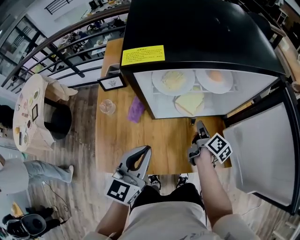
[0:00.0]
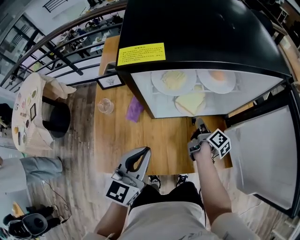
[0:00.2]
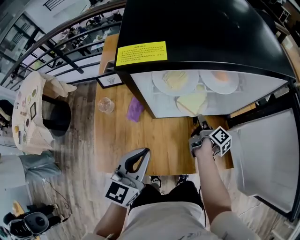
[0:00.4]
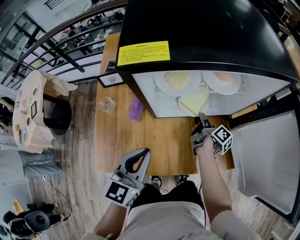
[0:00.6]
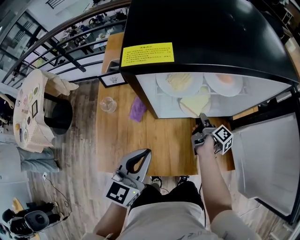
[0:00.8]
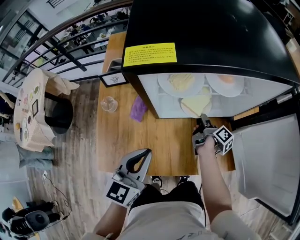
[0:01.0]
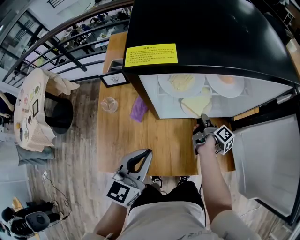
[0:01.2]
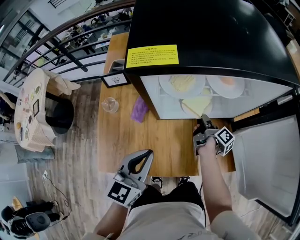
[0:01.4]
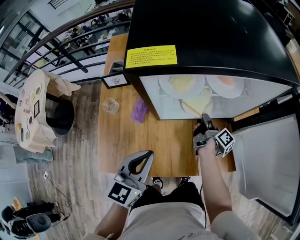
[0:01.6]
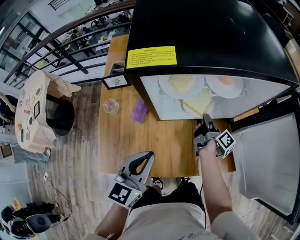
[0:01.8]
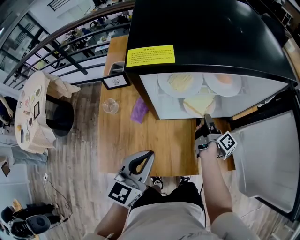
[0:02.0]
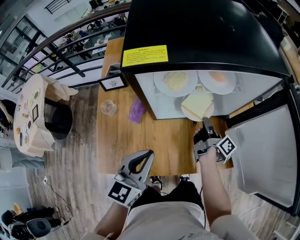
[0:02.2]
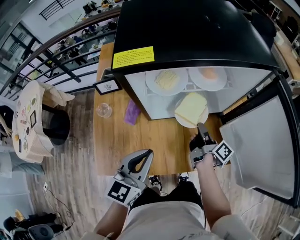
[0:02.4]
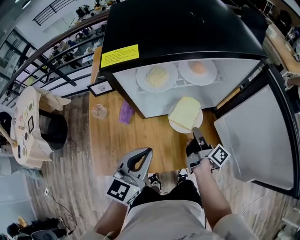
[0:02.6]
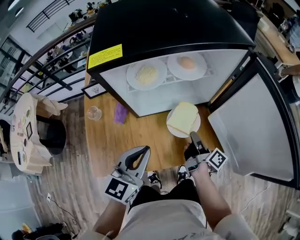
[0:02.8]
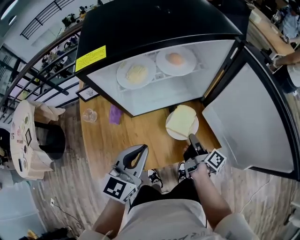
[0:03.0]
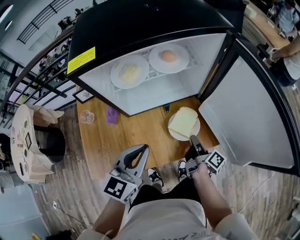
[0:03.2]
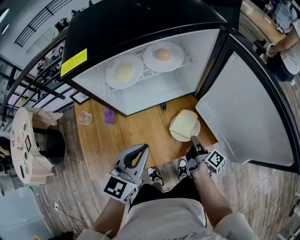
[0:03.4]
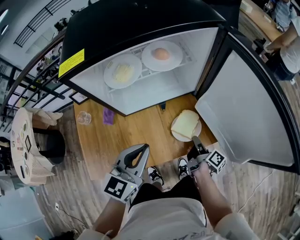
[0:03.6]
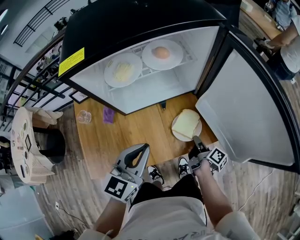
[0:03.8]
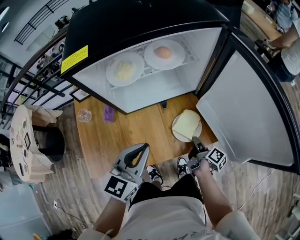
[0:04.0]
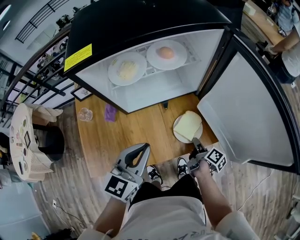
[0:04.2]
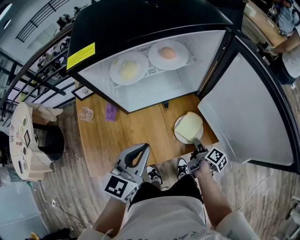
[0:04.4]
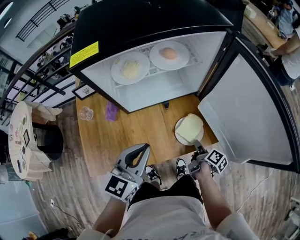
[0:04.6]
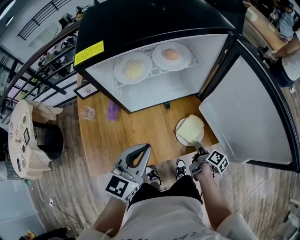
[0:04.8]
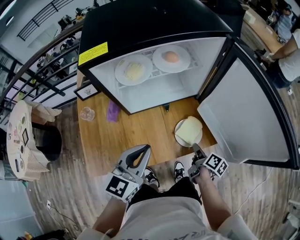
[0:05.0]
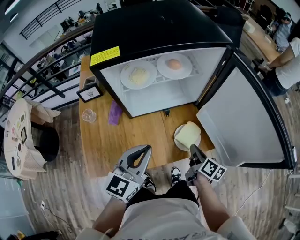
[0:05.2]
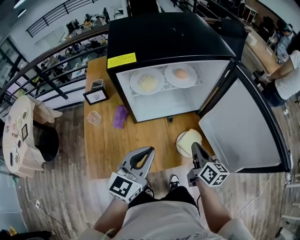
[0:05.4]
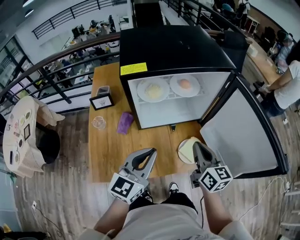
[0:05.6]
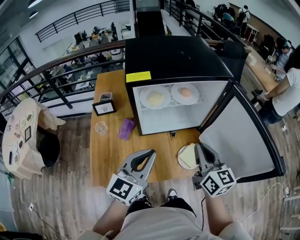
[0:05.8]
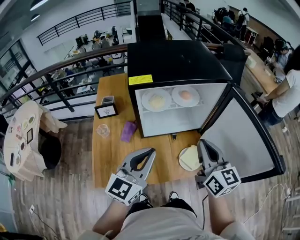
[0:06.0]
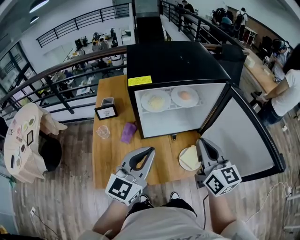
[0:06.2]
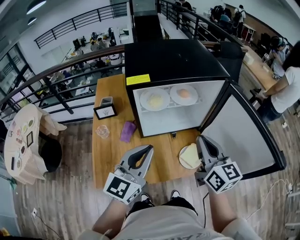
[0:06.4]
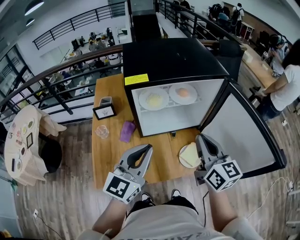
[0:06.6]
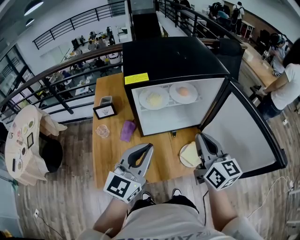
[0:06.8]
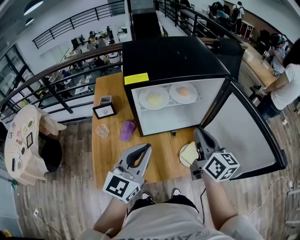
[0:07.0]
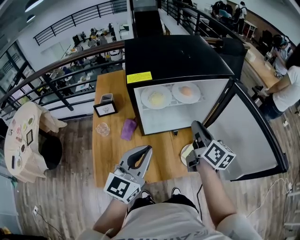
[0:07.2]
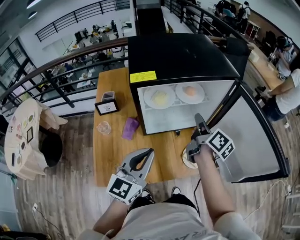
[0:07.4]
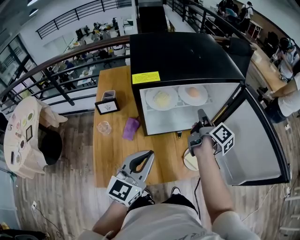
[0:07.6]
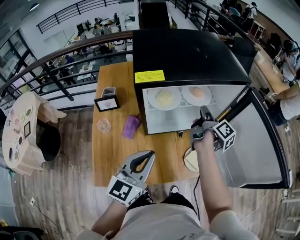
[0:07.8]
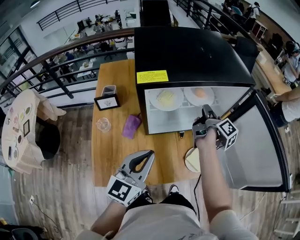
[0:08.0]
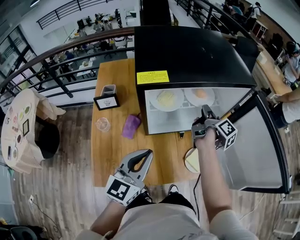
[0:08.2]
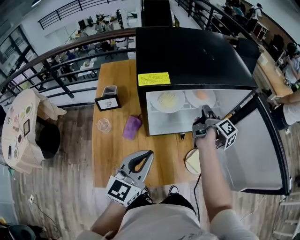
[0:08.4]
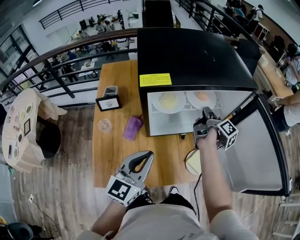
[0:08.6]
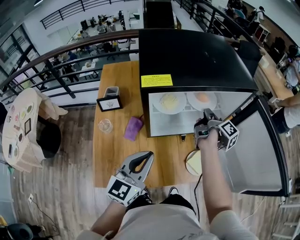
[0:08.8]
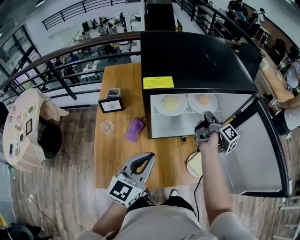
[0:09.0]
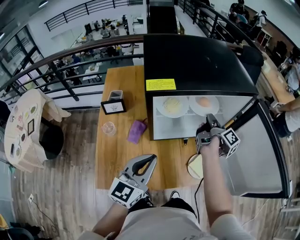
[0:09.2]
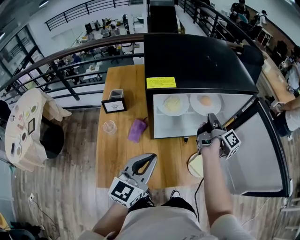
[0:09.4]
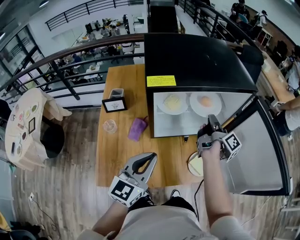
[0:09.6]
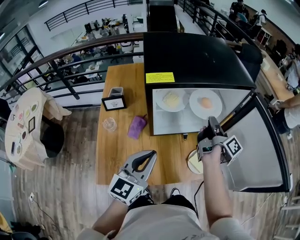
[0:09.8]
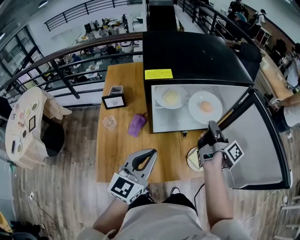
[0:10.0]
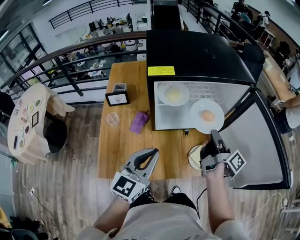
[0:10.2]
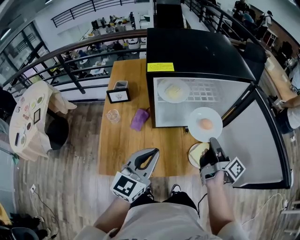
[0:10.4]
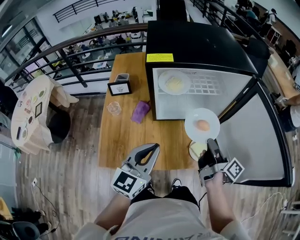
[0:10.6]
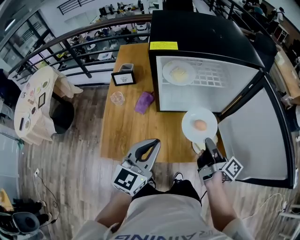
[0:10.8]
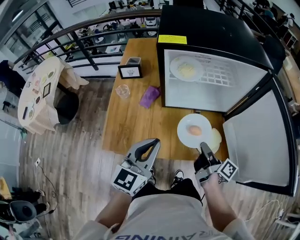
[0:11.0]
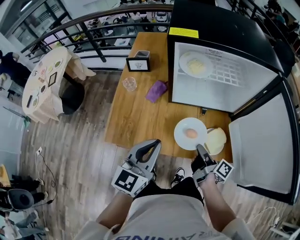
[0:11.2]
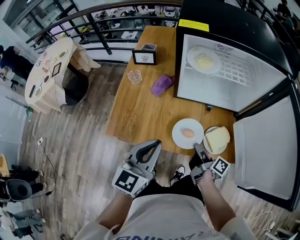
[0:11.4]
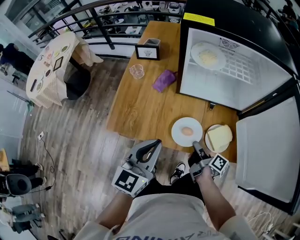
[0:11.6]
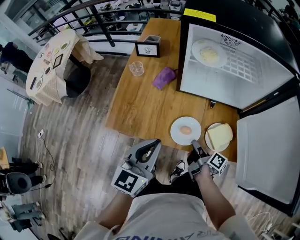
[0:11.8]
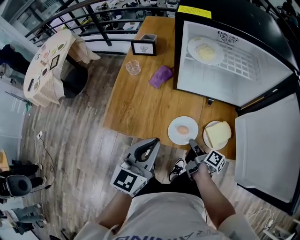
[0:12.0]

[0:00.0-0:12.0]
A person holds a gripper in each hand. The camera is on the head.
0:00.0 to 0:01.6: The right gripper moves forward, some 5 cm, and swivels some 20 degrees.
0:01.6 to 0:03.0: The left gripper moves to the right, roughly 10 cm. The right gripper moves backward and to the right, roughly 20 cm.
0:03.0 to 0:04.4: The right gripper moves downward and to the right, some 10 cm, swivels some 20 degrees, and opens up.
0:04.4 to 0:06.0: The left gripper goes roughly 10 cm upward. The right gripper heads upward, covering about 35 cm, twists roughly 70 degrees counterclockwise, seen from behind, and closes up.
0:06.0 to 0:07.6: The right gripper moves forward and downward, roughly 20 cm, and twists roughly 60 degrees clockwise, seen from behind.
0:07.6 to 0:09.0: The right gripper moves roughly 5 cm.
0:09.0 to 0:10.4: The right gripper is displaced backward by roughly 15 cm; the left gripper changes place by roughly 5 cm.
0:10.4 to 0:12.0: The right gripper shifts about 25 cm downward, and swivels roughly 40 degrees, while the left gripper changes place by some 10 cm.

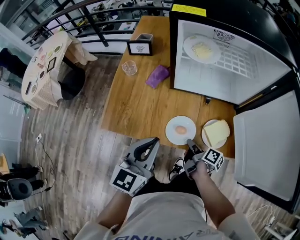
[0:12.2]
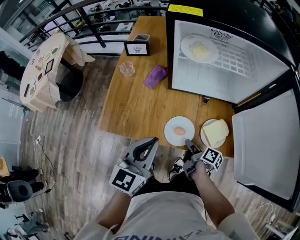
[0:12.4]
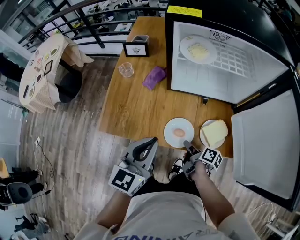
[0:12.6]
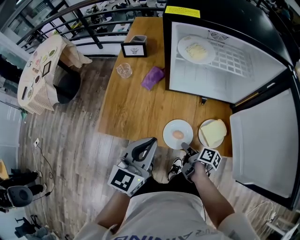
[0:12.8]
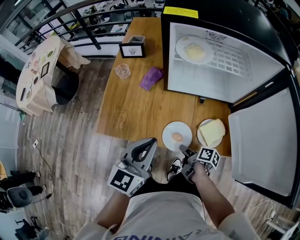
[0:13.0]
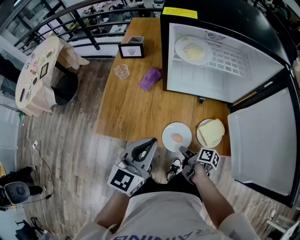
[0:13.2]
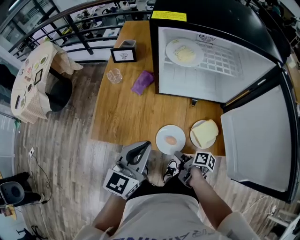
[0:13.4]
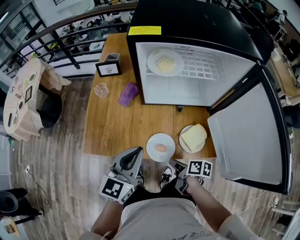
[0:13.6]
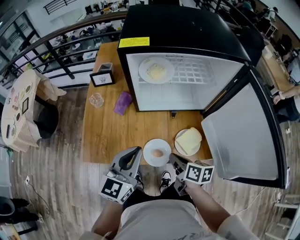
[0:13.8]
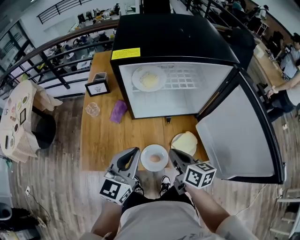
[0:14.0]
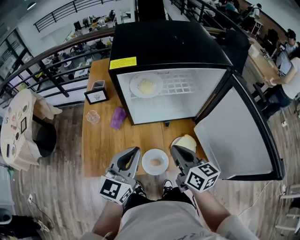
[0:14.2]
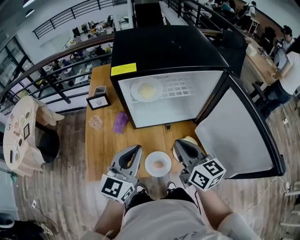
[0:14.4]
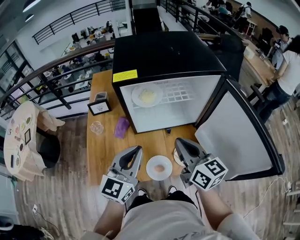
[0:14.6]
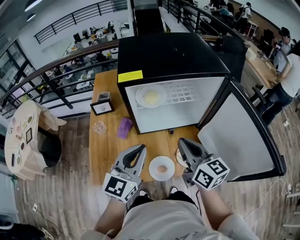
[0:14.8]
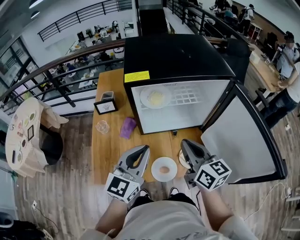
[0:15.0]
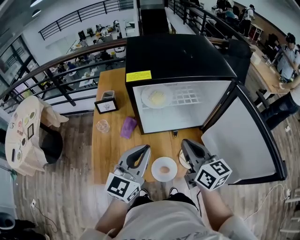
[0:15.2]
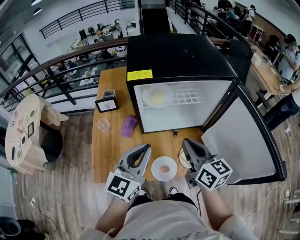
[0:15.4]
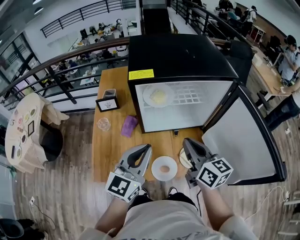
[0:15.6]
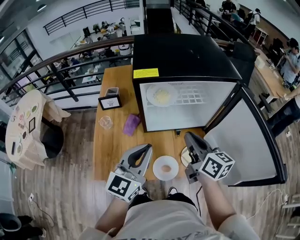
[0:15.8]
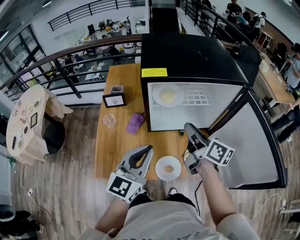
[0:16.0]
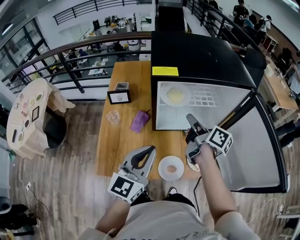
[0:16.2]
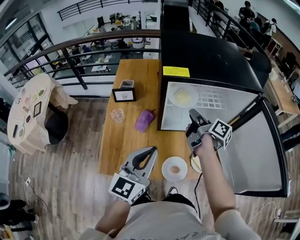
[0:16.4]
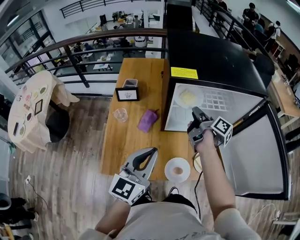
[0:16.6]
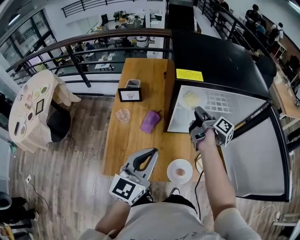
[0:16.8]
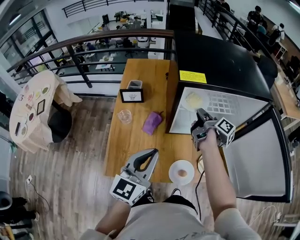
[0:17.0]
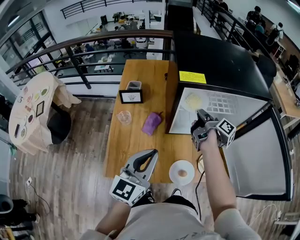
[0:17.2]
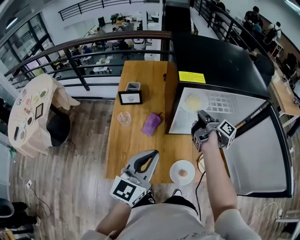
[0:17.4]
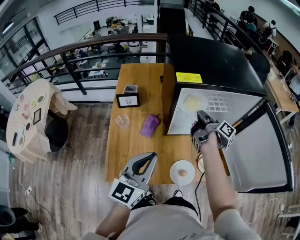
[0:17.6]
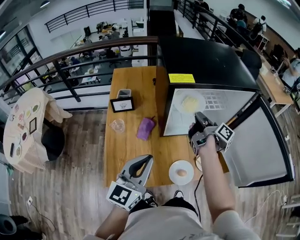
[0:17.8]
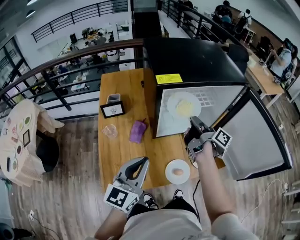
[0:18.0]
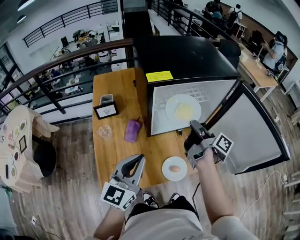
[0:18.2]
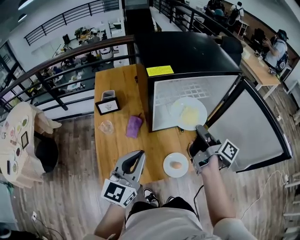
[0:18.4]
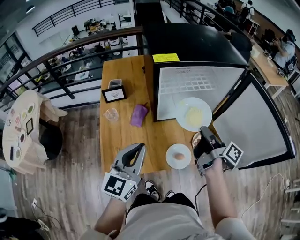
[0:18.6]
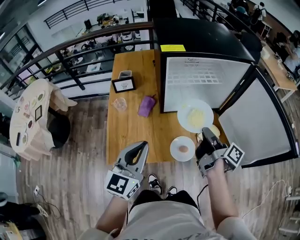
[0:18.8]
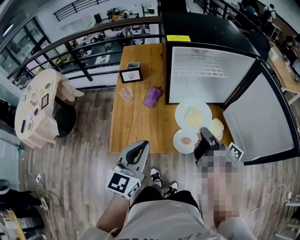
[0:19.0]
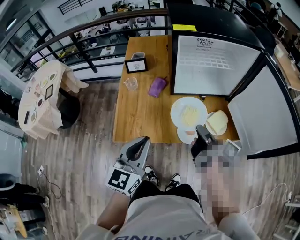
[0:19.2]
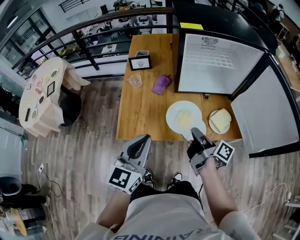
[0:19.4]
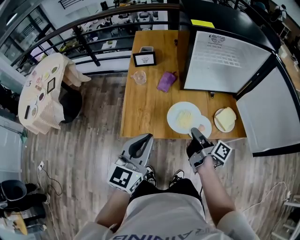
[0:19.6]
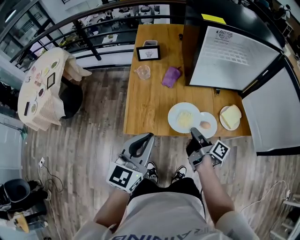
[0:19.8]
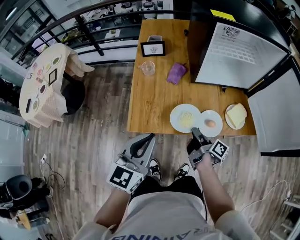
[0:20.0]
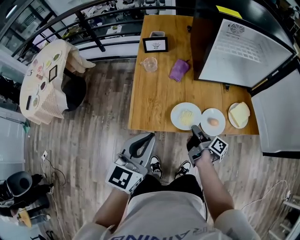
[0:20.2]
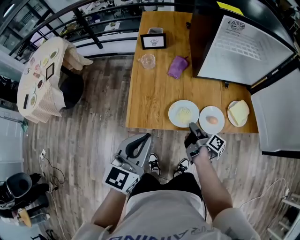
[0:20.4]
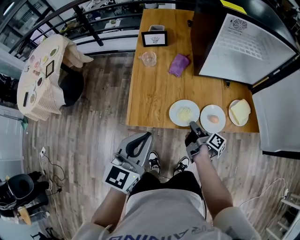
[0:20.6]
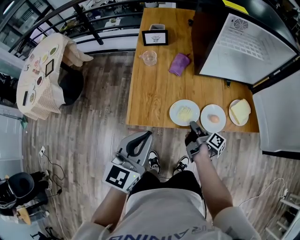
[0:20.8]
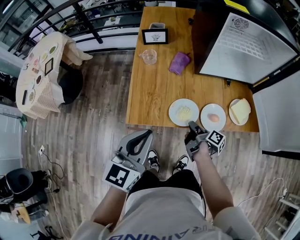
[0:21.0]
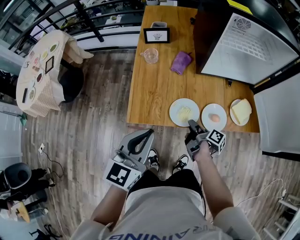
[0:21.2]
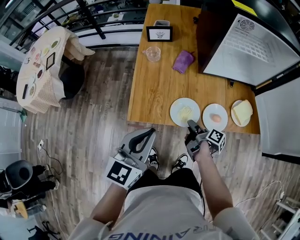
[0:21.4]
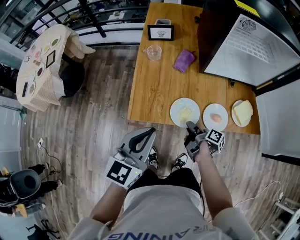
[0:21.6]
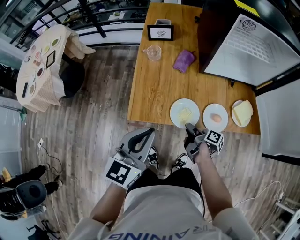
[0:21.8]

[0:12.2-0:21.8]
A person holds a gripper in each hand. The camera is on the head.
0:12.2 to 0:13.8: The left gripper changes place by some 5 cm; the right gripper moves upward, some 10 cm, rotates some 30 degrees, and opens, then closes once more.
0:13.8 to 0:15.4: The right gripper travels upward by approximately 20 cm, and changes its angle by approximately 40 degrees, while the left gripper moves upward, some 10 cm.
0:15.4 to 0:17.0: The right gripper is displaced forward and downward by about 20 cm, and twists about 60 degrees clockwise, seen from behind; the left gripper moves to the left, approximately 10 cm.
0:17.0 to 0:18.6: The right gripper moves backward and to the right, about 20 cm.
0:18.6 to 0:20.2: The left gripper moves backward, to the left and downward, about 15 cm. The right gripper travels downward, to the left and backward by about 30 cm, and turns by roughly 20 degrees.
0:20.2 to 0:21.8: The right gripper moves downward, about 5 cm, and opens up.

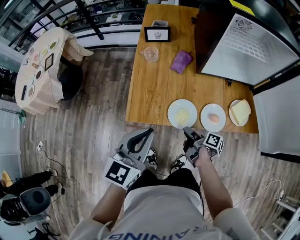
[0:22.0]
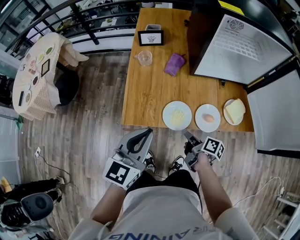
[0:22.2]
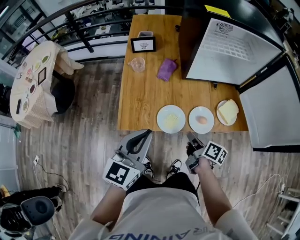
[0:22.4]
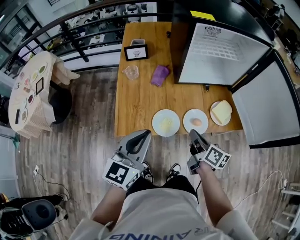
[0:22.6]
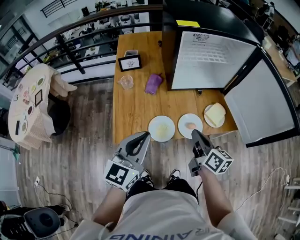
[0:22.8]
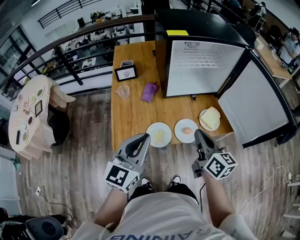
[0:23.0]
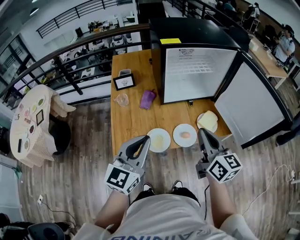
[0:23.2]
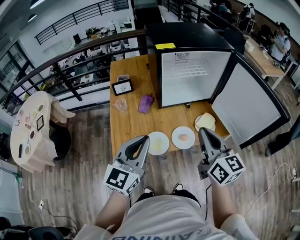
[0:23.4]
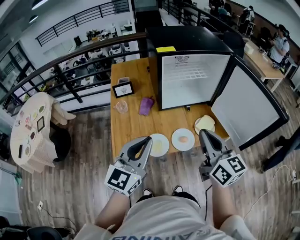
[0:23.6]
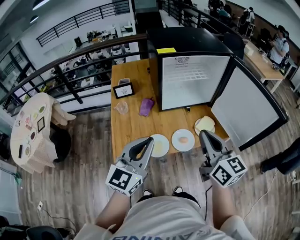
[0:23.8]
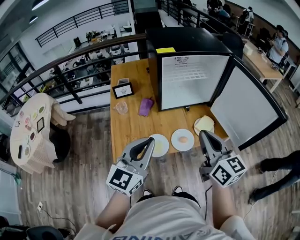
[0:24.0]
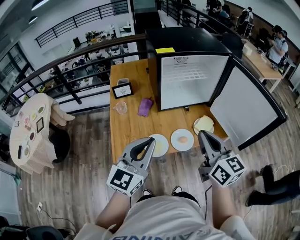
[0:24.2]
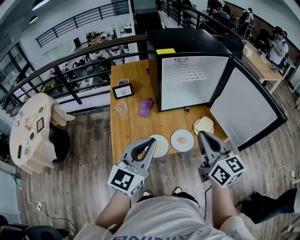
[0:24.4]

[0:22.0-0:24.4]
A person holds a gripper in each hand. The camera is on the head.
0:22.0 to 0:23.2: The right gripper shifts approximately 30 cm upward, rolls counterclockwise, seen from behind, by roughly 60 degrees, and closes up. Meanwhile the left gripper moves upward and to the right, about 10 cm.
0:23.2 to 0:24.4: The right gripper shifts by roughly 5 cm.
